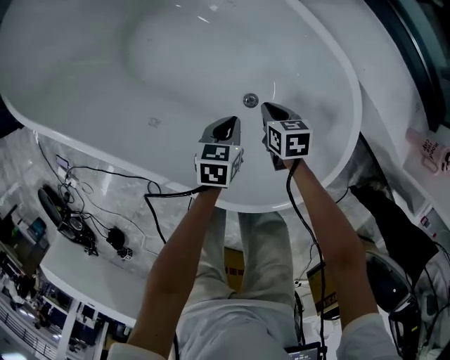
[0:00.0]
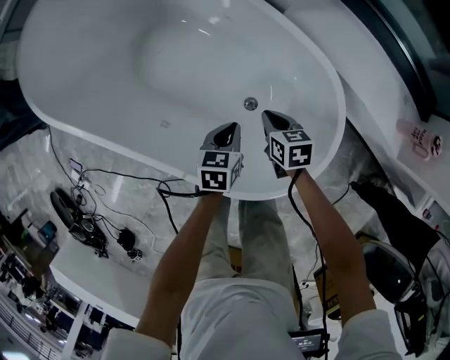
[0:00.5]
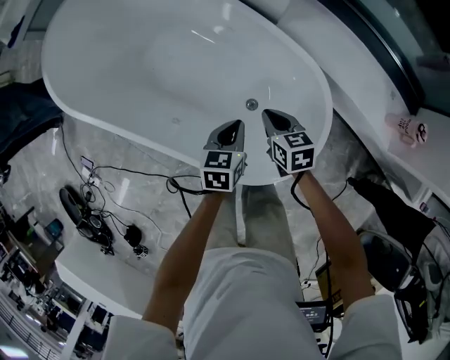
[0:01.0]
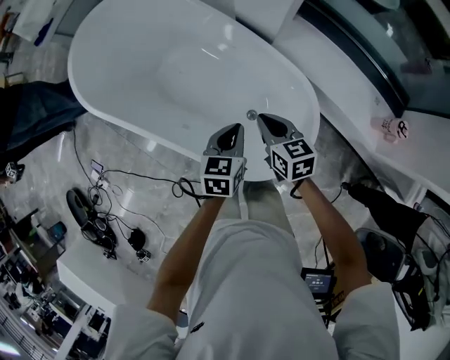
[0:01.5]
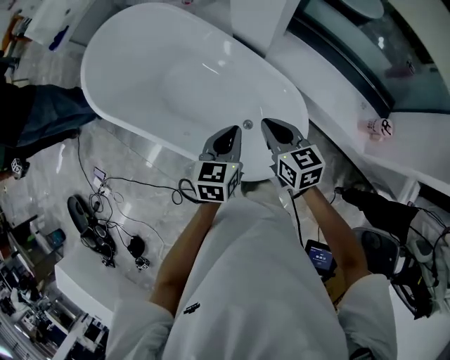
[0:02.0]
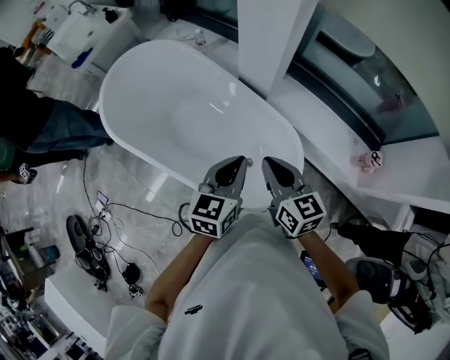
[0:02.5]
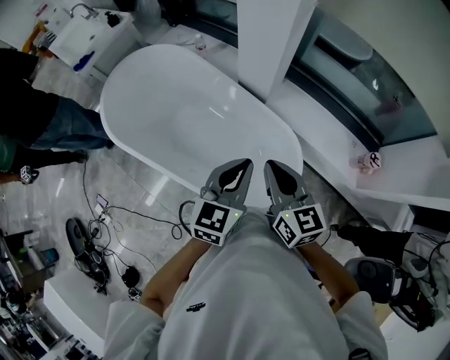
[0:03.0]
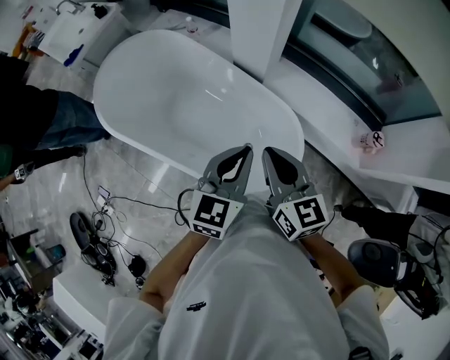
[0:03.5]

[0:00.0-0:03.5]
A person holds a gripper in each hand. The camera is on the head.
0:00.0 to 0:02.0: Both grippers move upward, some 50 cm. The left gripper changes its angle by roughly 20 degrees, while the right gripper changes its angle by approximately 30 degrees.
0:02.0 to 0:03.5: The grippers both shift upward by about 15 cm. The left gripper swivels roughly 20 degrees.

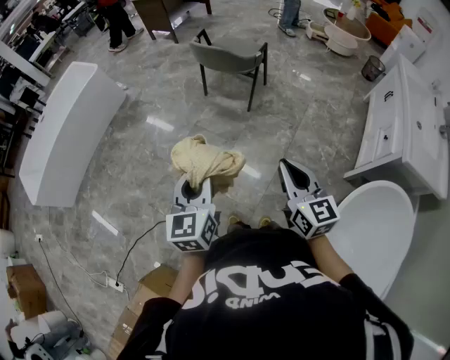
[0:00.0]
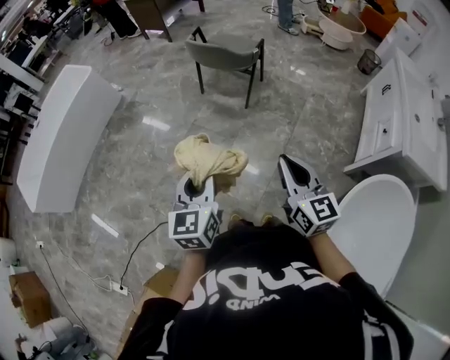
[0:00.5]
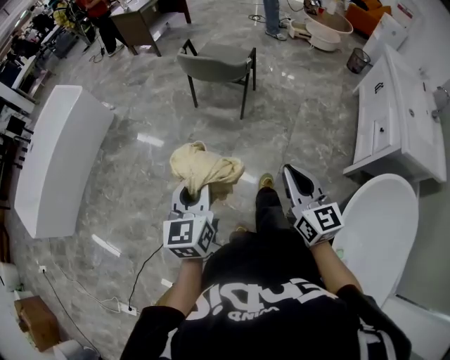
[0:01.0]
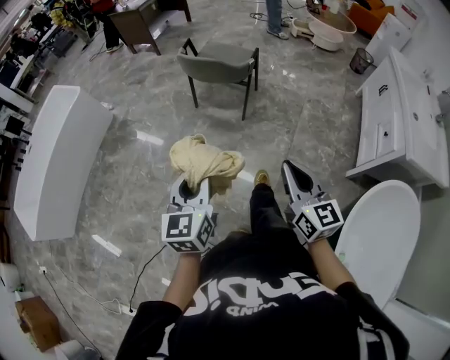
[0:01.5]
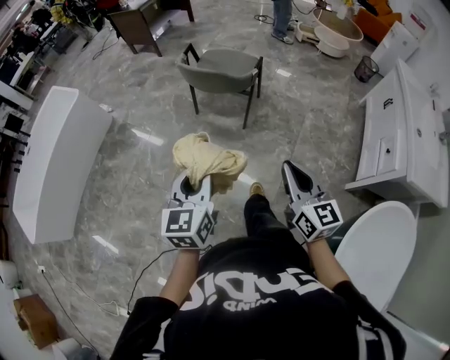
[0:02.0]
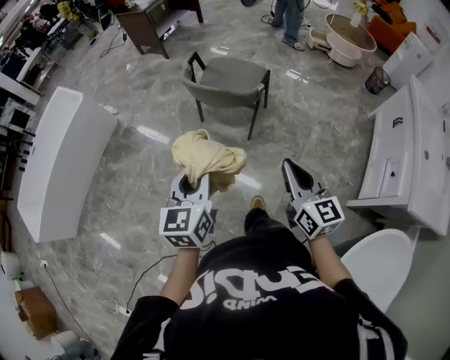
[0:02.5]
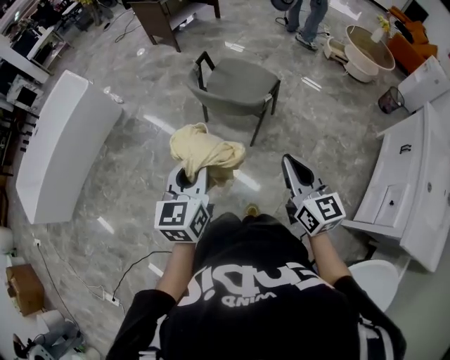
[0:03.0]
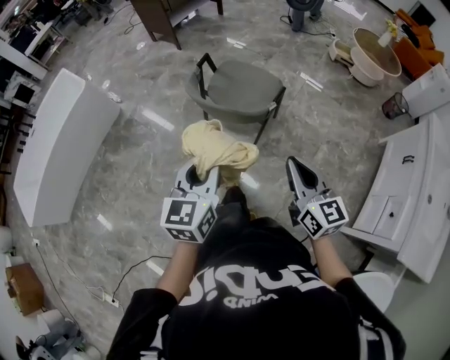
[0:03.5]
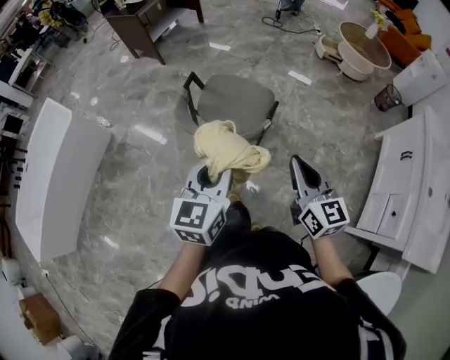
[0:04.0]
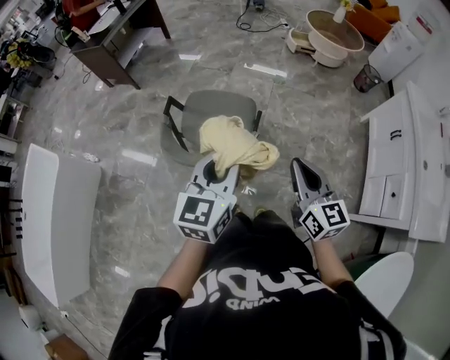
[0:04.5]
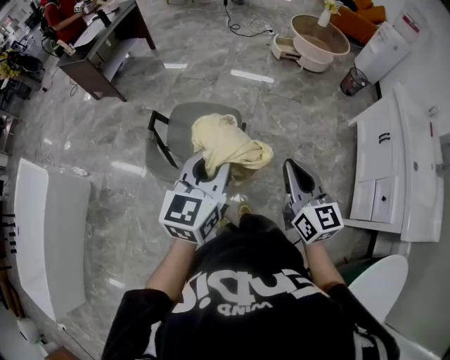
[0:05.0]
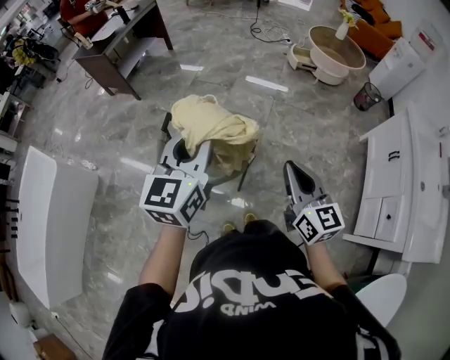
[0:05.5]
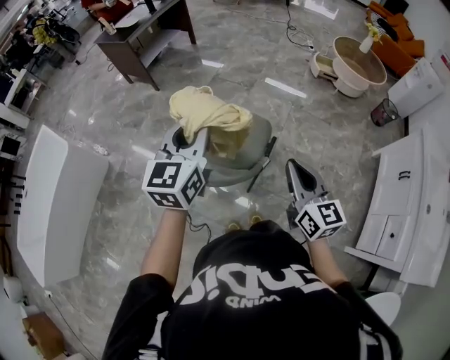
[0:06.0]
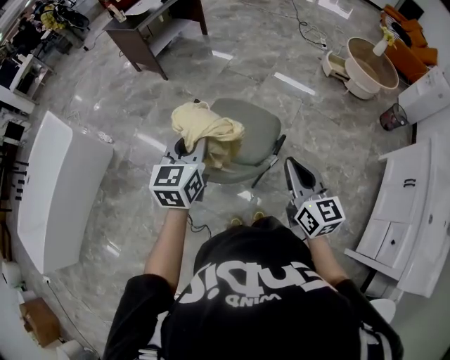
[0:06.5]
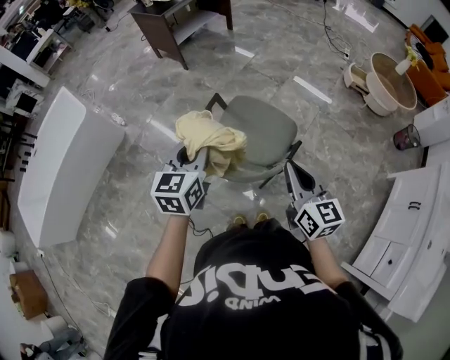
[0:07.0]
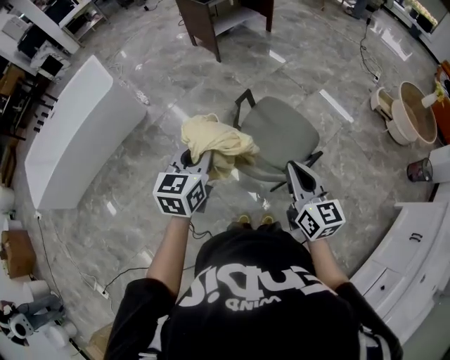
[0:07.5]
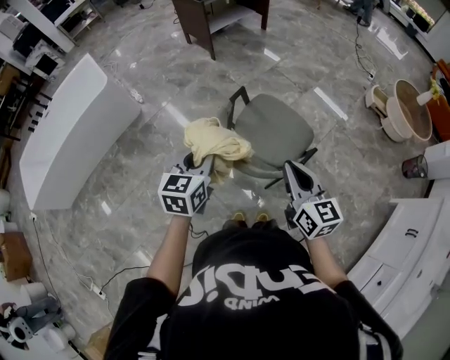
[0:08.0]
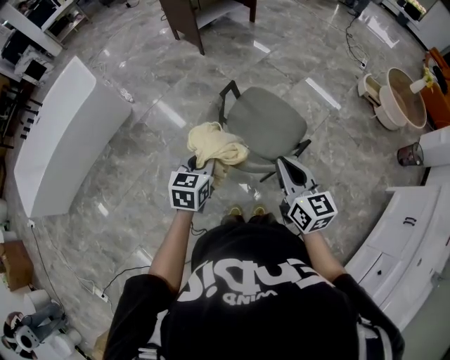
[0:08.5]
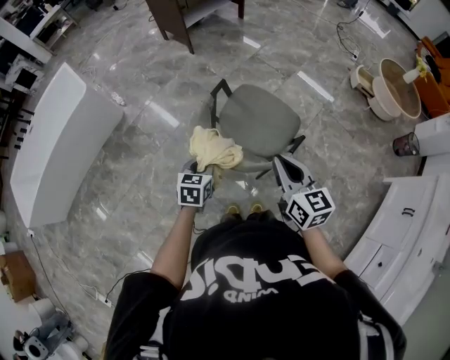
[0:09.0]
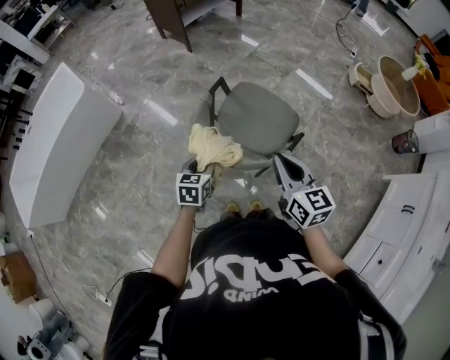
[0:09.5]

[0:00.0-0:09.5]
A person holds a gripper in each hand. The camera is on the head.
0:00.0 to 0:02.0: Both grippers travel together forward, roughly 20 cm.
0:02.0 to 0:04.0: The two grippers go approximately 40 cm forward.
0:04.0 to 0:05.5: The right gripper heads forward, covering approximately 10 cm. The left gripper shifts roughly 20 cm forward and upward.
0:05.5 to 0:07.5: The right gripper ends up about 20 cm from where it was, and changes its angle by about 30 degrees; the left gripper moves some 25 cm, and swivels approximately 30 degrees.
0:07.5 to 0:09.5: The left gripper heads downward, covering approximately 20 cm, and rotates approximately 20 degrees.

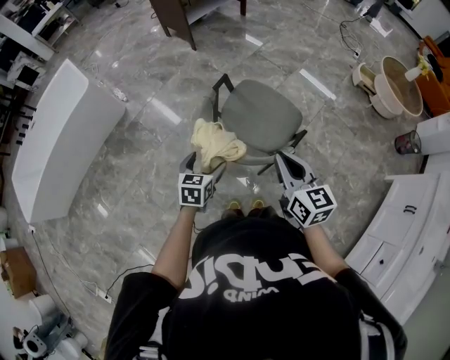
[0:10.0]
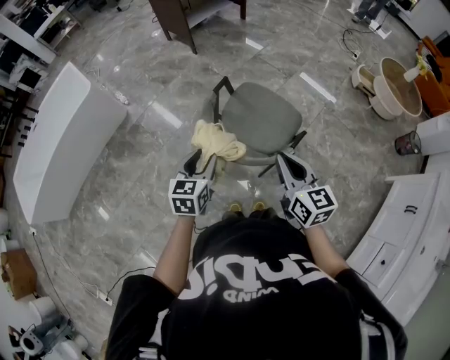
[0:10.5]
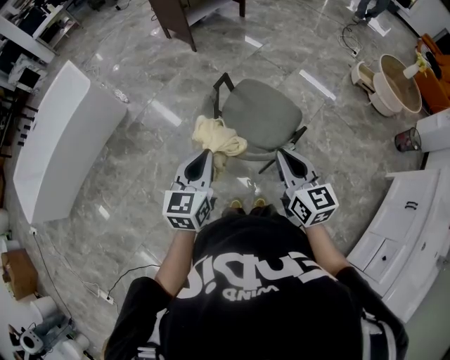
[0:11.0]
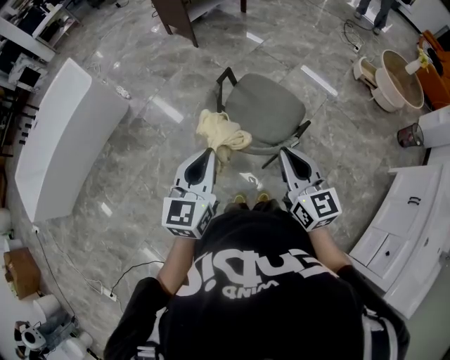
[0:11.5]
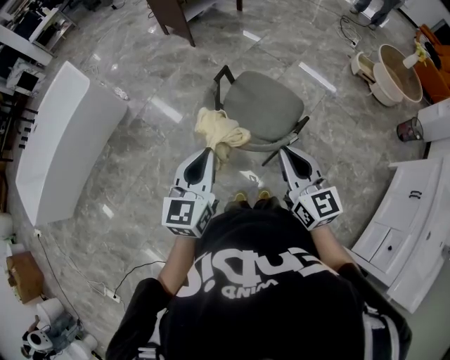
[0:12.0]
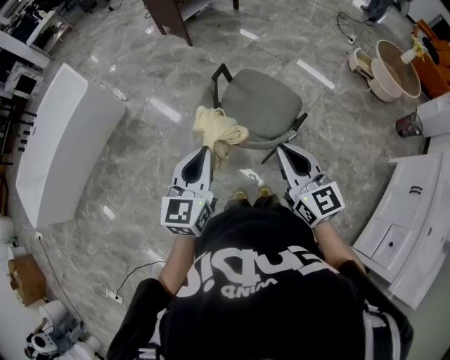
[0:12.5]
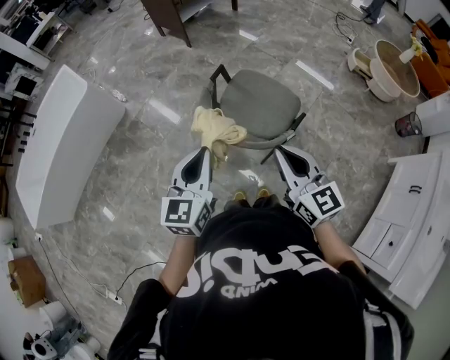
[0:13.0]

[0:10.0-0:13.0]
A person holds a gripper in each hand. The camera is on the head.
0:10.0 to 0:11.5: The left gripper is displaced upward by approximately 20 cm, changes its angle by about 30 degrees, and closes its fingers, while the right gripper changes place by about 5 cm.
0:11.5 to 0:13.0: The grippers make only small movements.

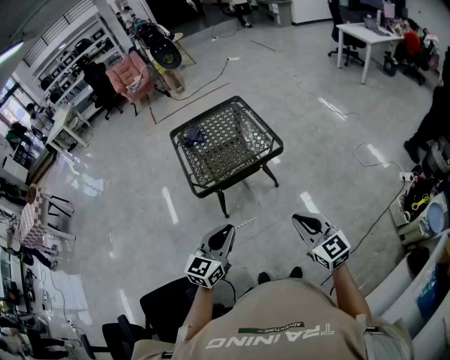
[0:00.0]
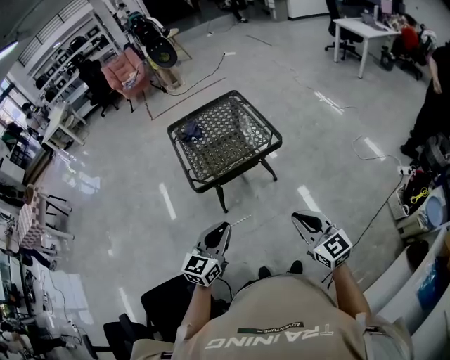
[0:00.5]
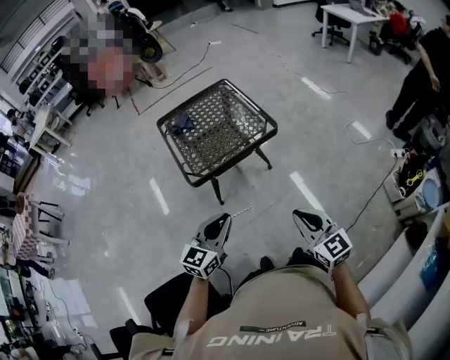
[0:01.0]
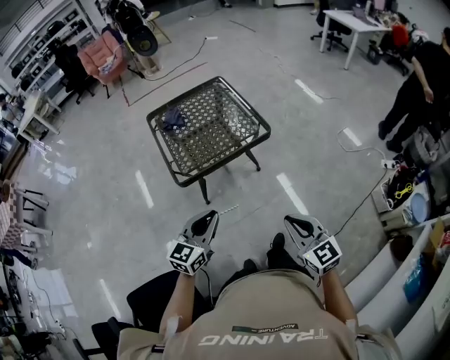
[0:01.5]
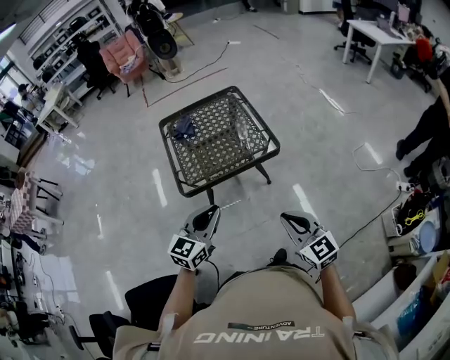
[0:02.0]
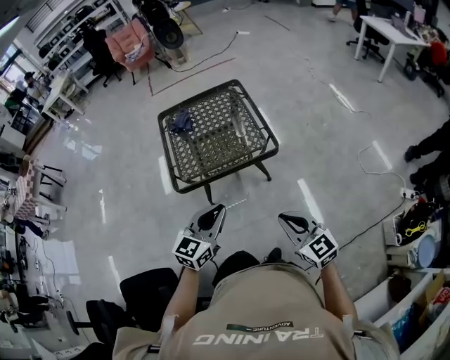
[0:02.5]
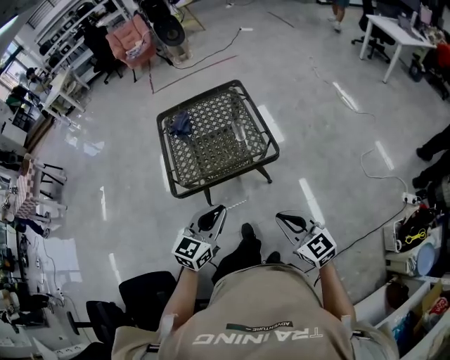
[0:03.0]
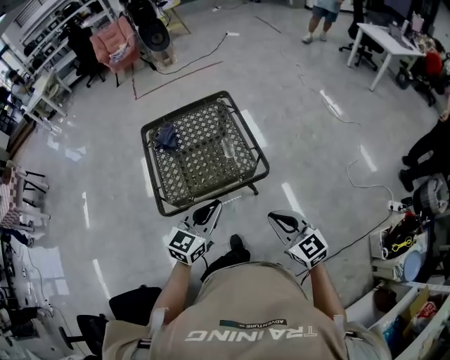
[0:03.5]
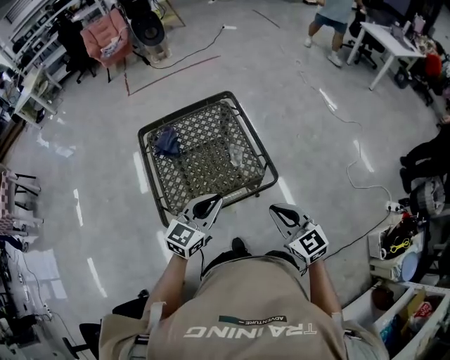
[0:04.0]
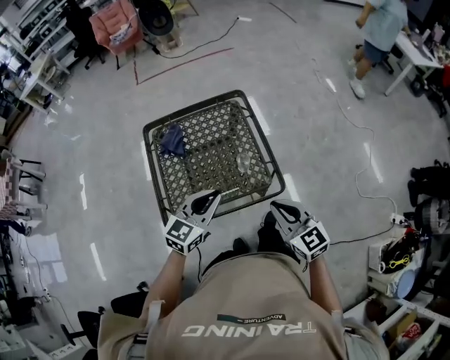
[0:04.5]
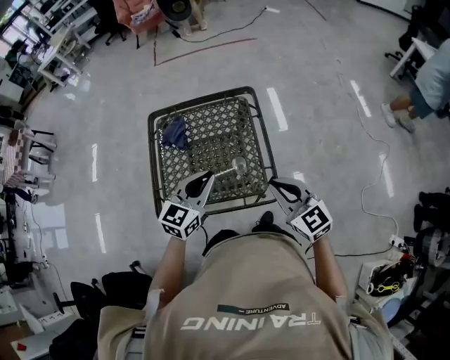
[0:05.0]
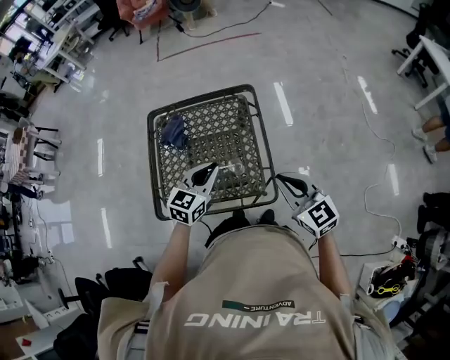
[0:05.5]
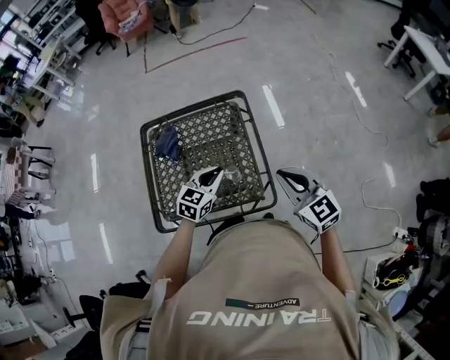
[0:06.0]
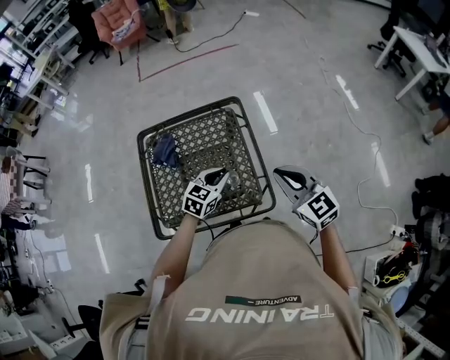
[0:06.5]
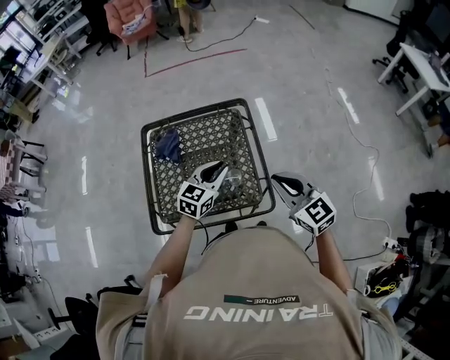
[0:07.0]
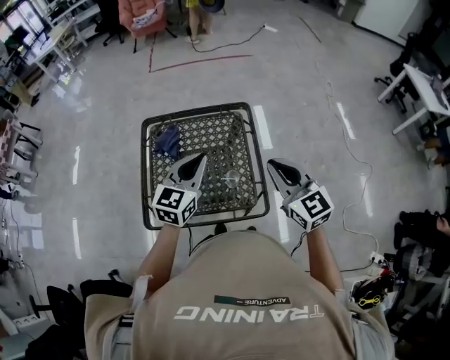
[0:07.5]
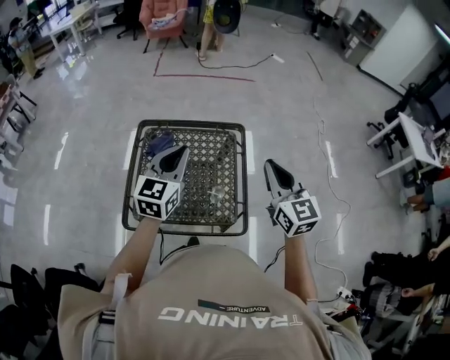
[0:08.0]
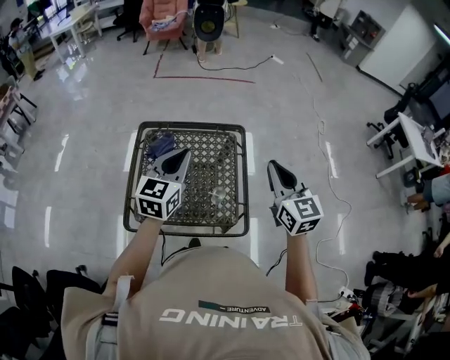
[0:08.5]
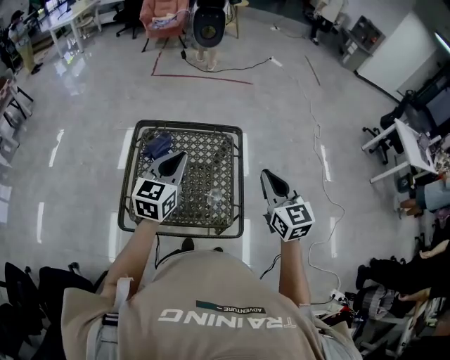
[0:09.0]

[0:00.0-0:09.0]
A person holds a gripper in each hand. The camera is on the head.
0:00.0 to 0:02.0: The grippers both shift forward by some 10 cm.
0:02.0 to 0:04.5: Both grippers move forward, some 35 cm.
0:04.5 to 0:07.0: The grippers both shift forward and to the right by roughly 15 cm.
0:07.0 to 0:09.0: The right gripper is displaced upward and forward by approximately 10 cm; the left gripper is displaced upward and to the left by about 20 cm, and changes its angle by roughly 30 degrees.

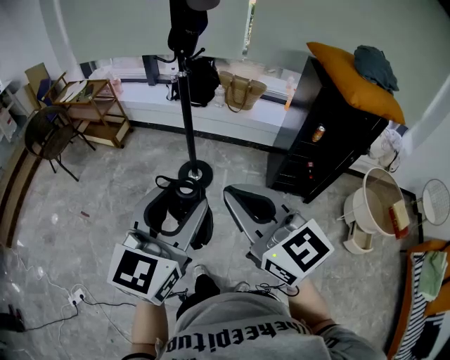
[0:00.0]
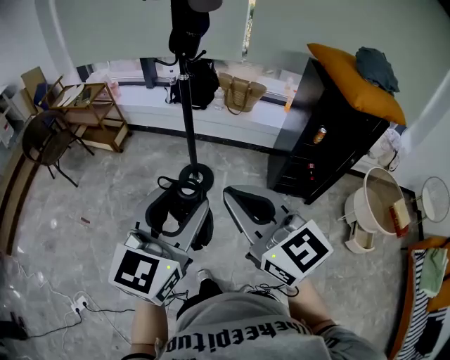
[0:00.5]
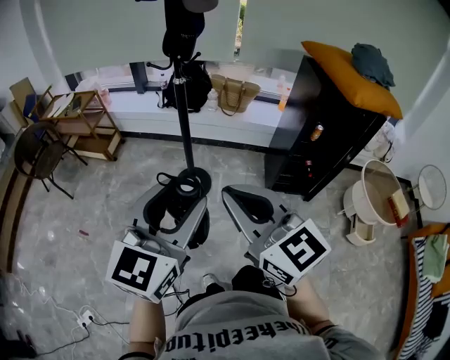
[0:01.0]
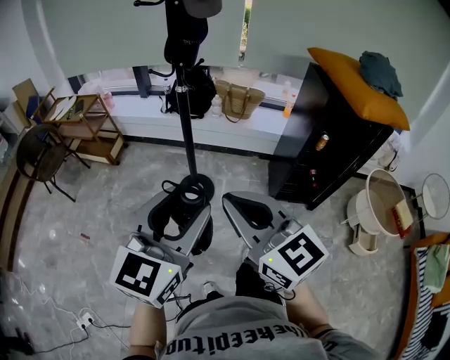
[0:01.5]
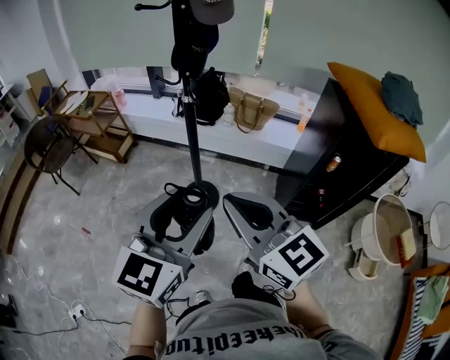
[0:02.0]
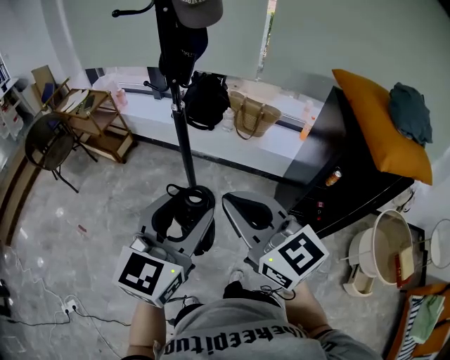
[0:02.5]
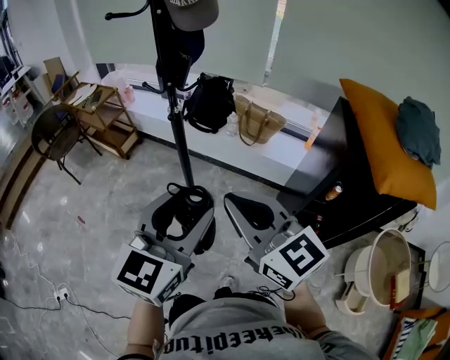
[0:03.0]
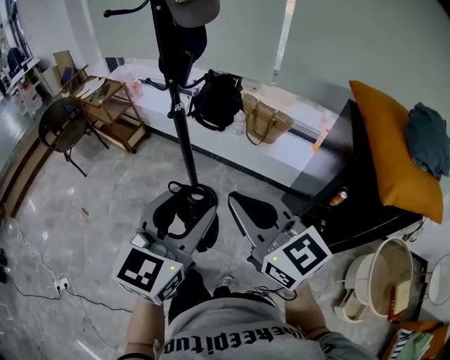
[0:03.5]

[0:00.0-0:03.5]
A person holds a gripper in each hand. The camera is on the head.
0:00.0 to 0:02.0: Both grippers move forward, roughly 15 cm.
0:02.0 to 0:03.5: The two grippers go approximately 15 cm to the right and forward.
